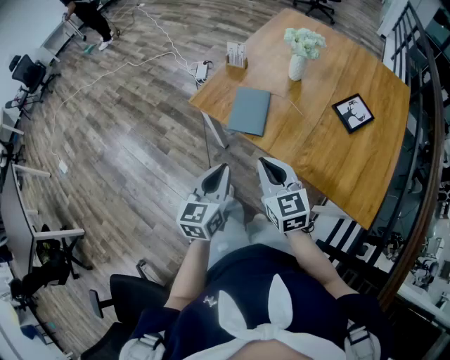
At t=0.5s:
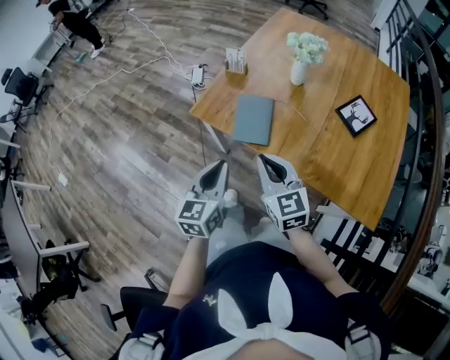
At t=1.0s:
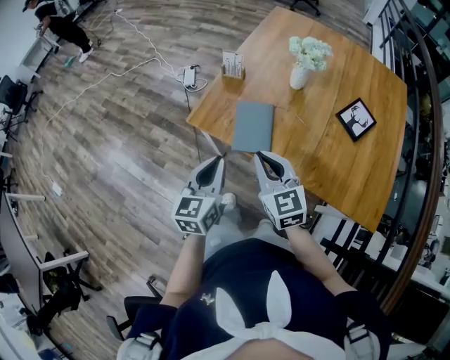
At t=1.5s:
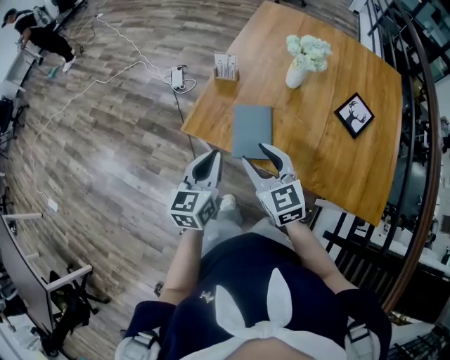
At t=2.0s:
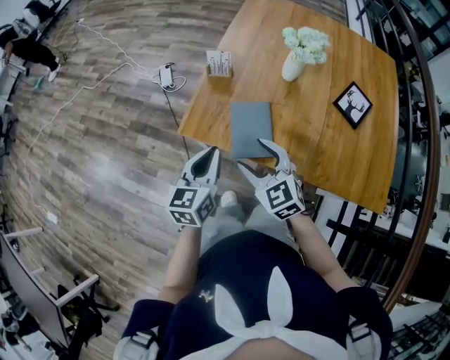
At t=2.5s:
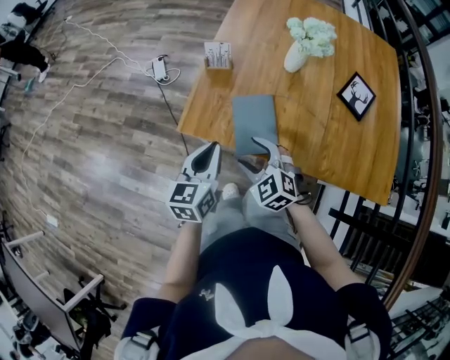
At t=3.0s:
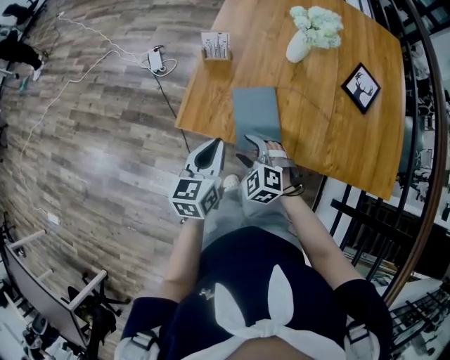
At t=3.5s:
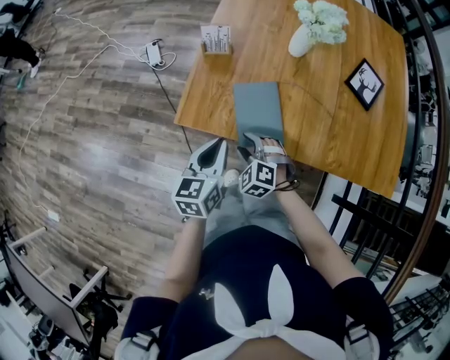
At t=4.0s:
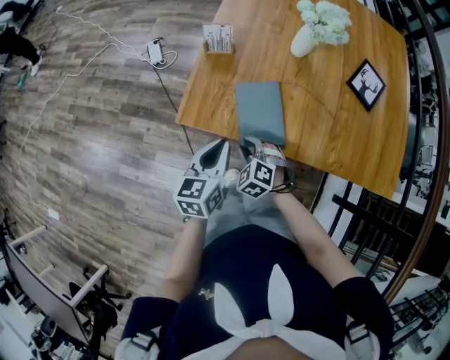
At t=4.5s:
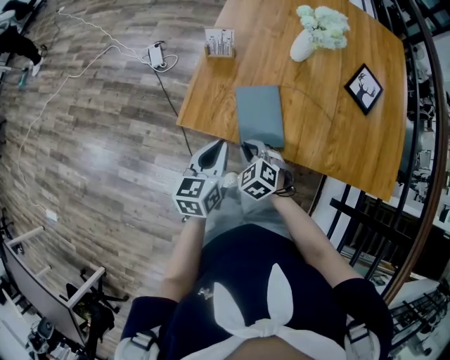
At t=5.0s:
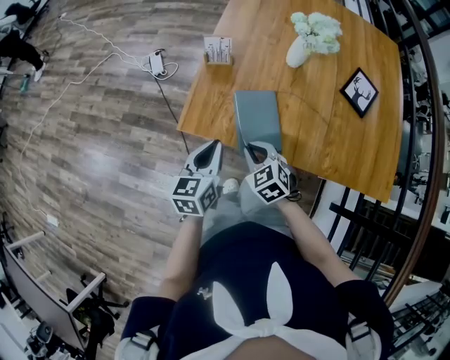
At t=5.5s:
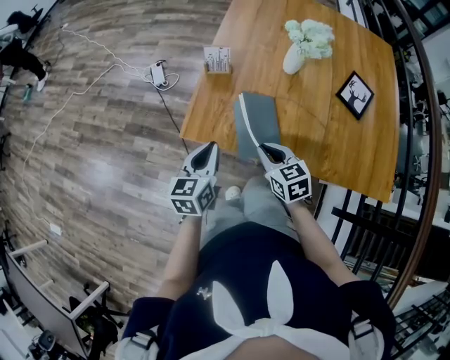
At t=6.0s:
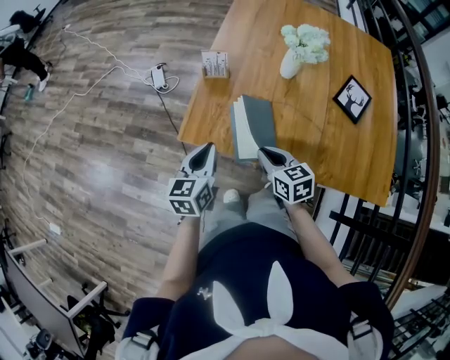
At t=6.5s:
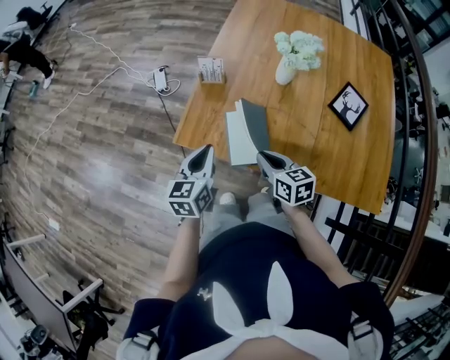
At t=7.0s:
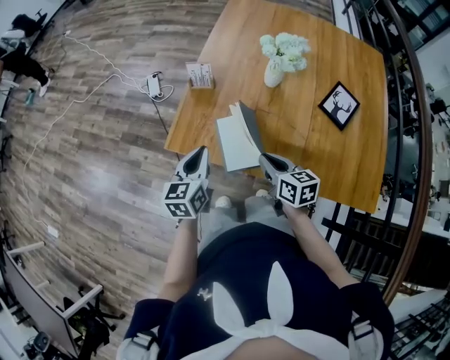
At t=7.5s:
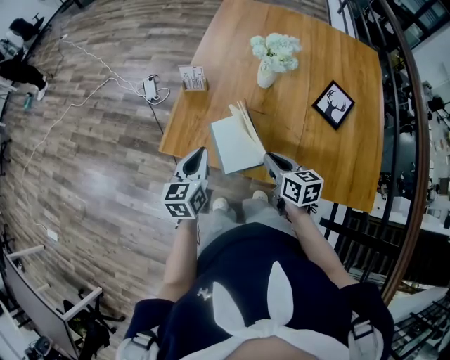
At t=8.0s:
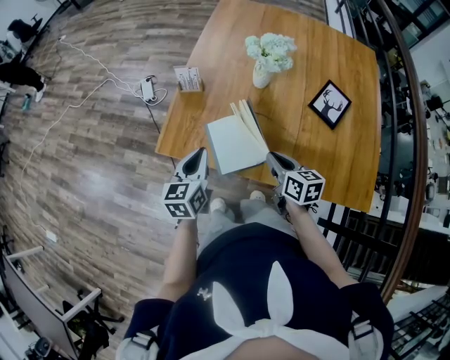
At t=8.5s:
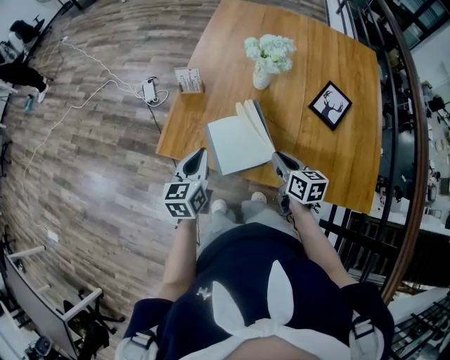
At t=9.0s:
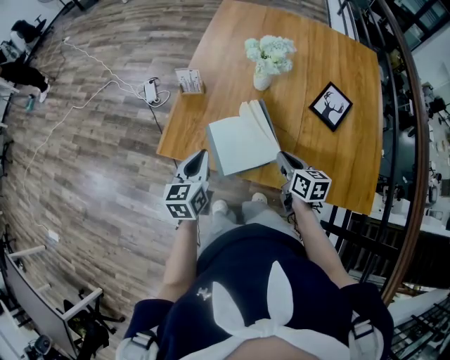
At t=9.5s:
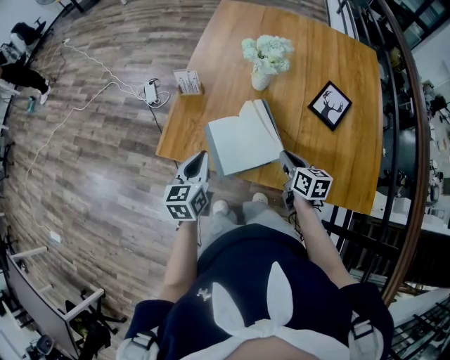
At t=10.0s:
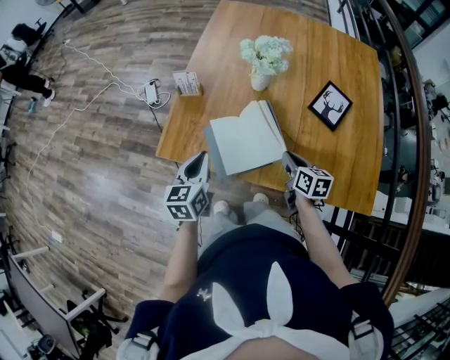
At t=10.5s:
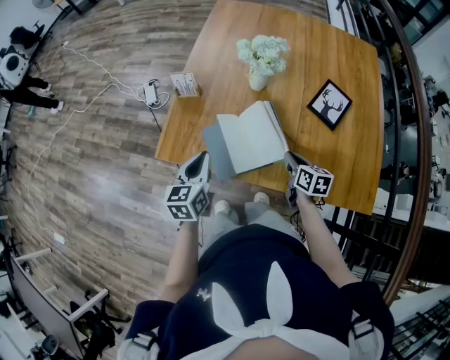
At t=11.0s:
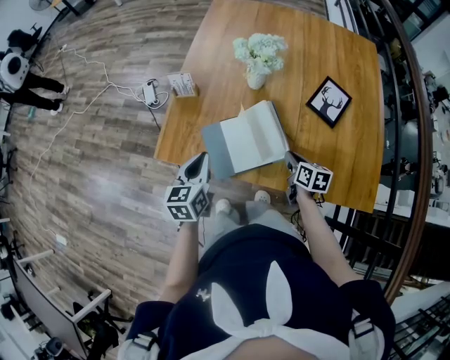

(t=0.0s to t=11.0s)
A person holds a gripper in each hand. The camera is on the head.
t=0.0s - t=2.0s: Both grippers move forward and to the left, some 25 cm. The right gripper opens up.
t=2.0s - t=3.5s: The left gripper travels downward by about 10 cm. Meanwhile the right gripper goes roughly 20 cm downward, and swivels roughly 30 degrees.
t=3.5s - t=5.5s: The right gripper travels upward and to the right by roughly 10 cm, rolls clockwise, seen from behind, by about 50 degrees, and closes.
t=5.5s - t=7.5s: The left gripper moves to the right, some 10 cm. The right gripper travels to the right by roughly 15 cm, and turns by roughly 20 degrees.
t=7.5s - t=9.0s: The right gripper is displaced to the right by approximately 5 cm.
t=9.0s - t=11.0s: The right gripper travels downward and to the right by approximately 10 cm.

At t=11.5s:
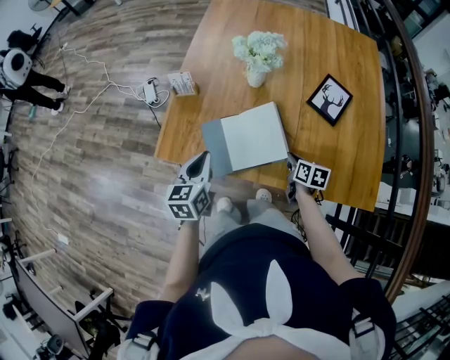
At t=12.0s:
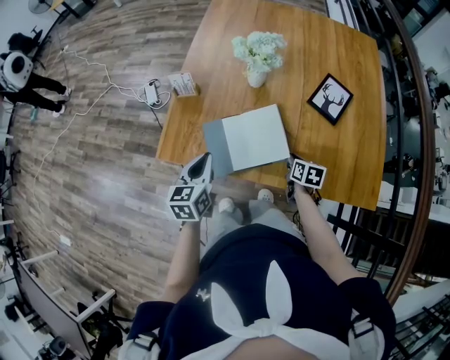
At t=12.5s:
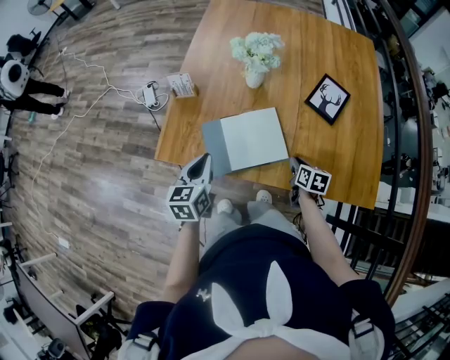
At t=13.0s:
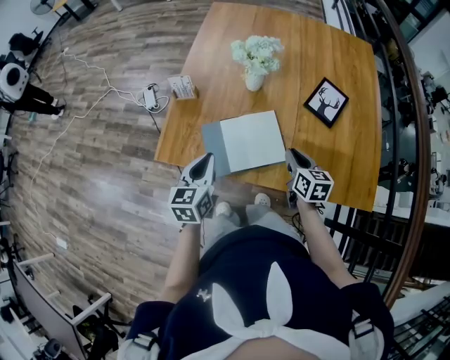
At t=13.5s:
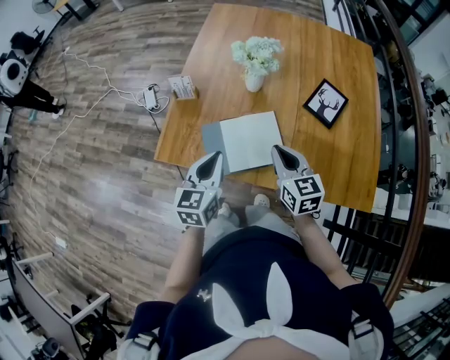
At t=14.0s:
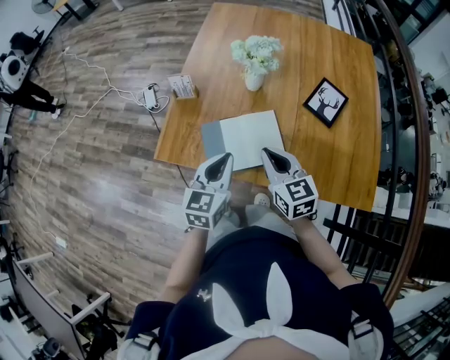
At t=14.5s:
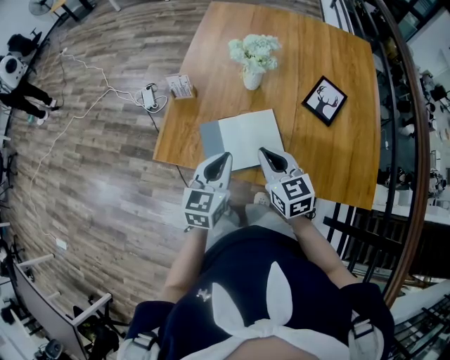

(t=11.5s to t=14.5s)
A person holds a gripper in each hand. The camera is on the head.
t=11.5s - t=13.0s: The right gripper goes approximately 10 cm upward.
t=13.0s - t=14.5s: The left gripper shifts roughly 5 cm to the right. The right gripper travels to the left and upward by about 15 cm, and swivels about 30 degrees.

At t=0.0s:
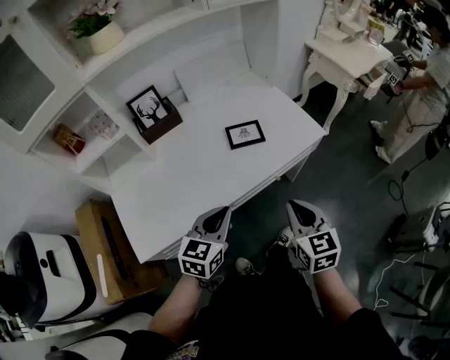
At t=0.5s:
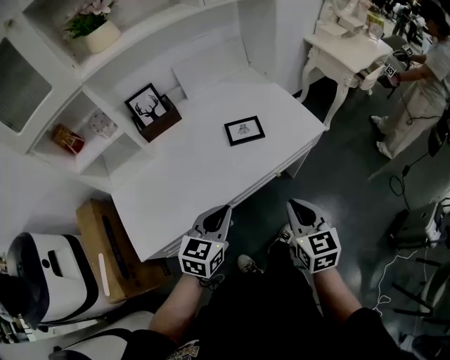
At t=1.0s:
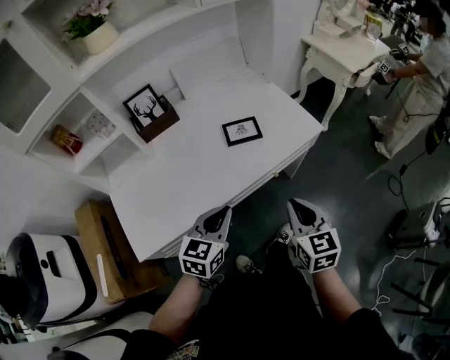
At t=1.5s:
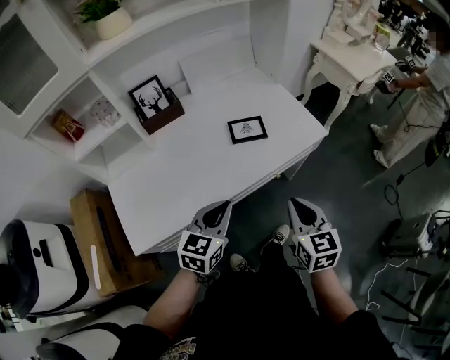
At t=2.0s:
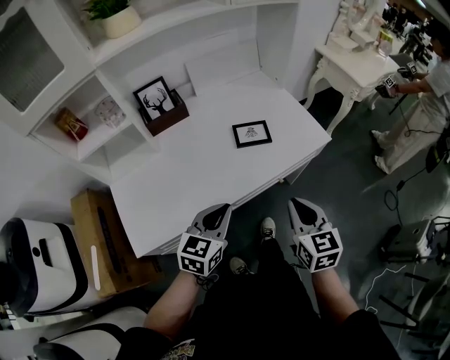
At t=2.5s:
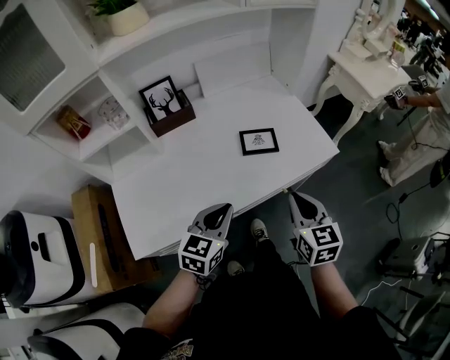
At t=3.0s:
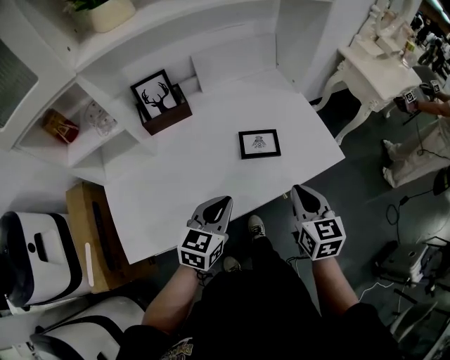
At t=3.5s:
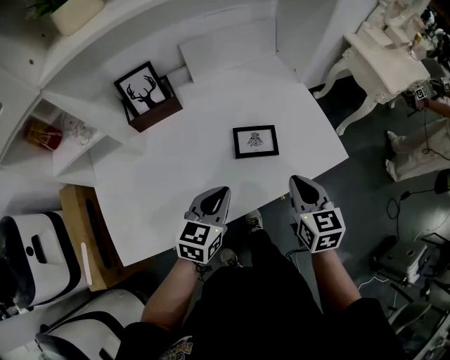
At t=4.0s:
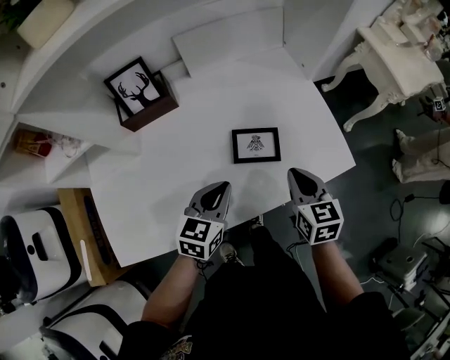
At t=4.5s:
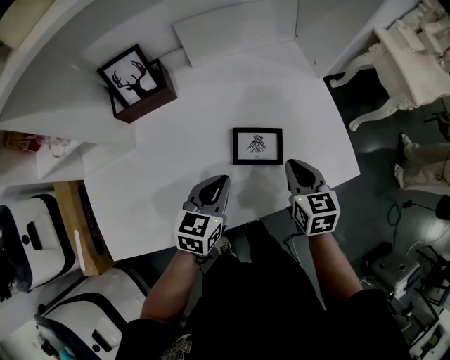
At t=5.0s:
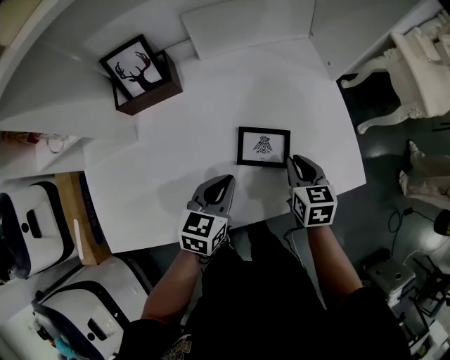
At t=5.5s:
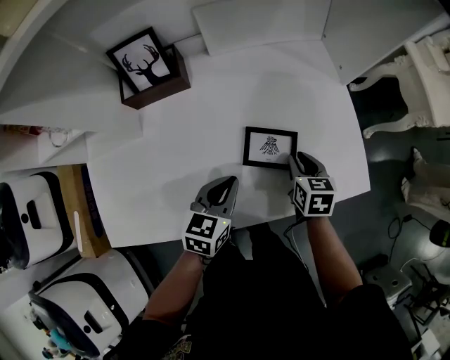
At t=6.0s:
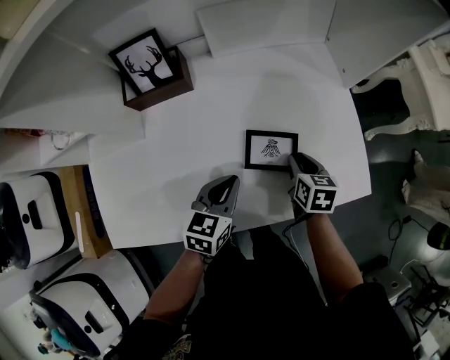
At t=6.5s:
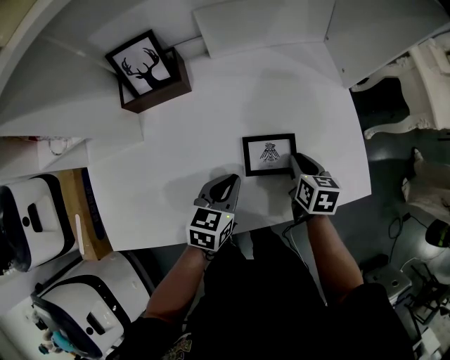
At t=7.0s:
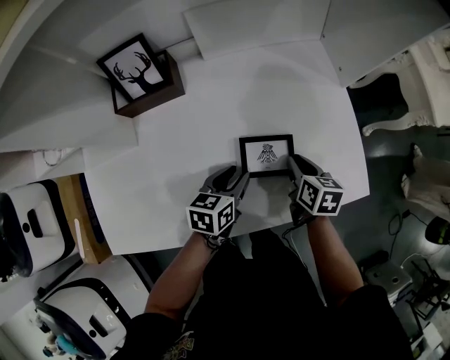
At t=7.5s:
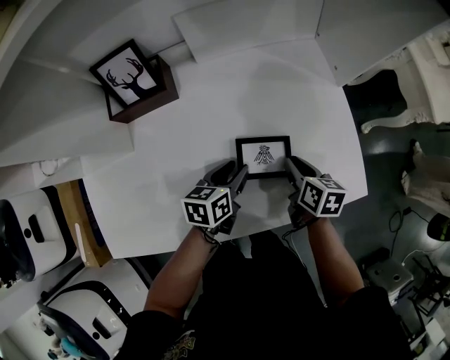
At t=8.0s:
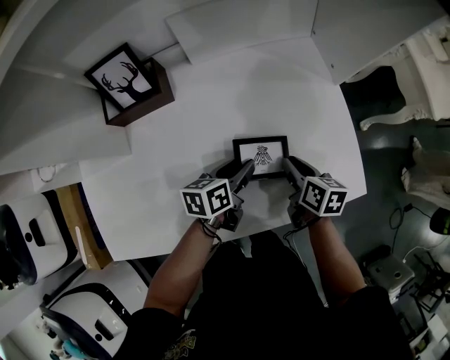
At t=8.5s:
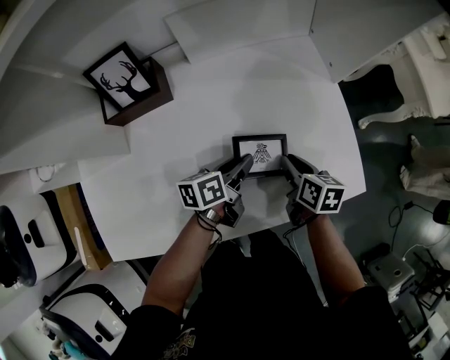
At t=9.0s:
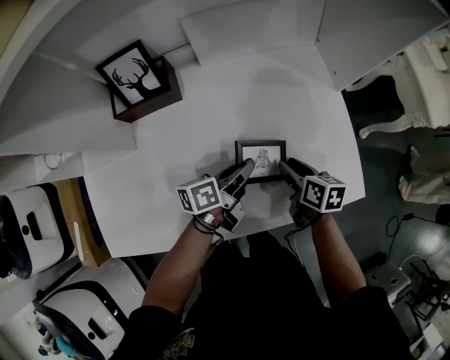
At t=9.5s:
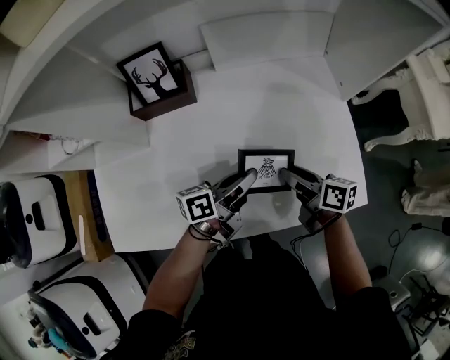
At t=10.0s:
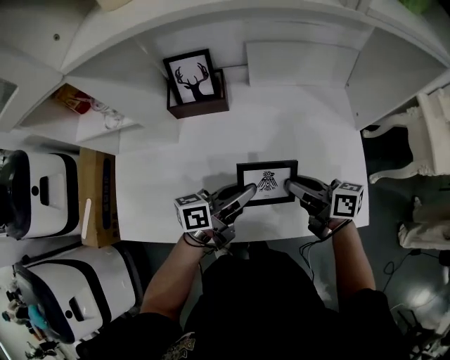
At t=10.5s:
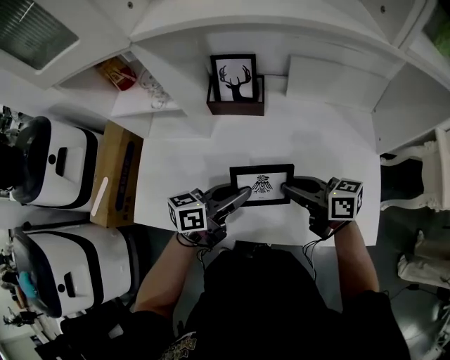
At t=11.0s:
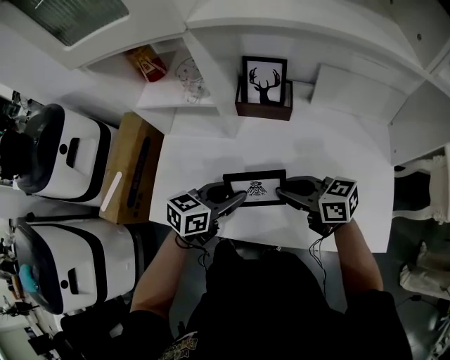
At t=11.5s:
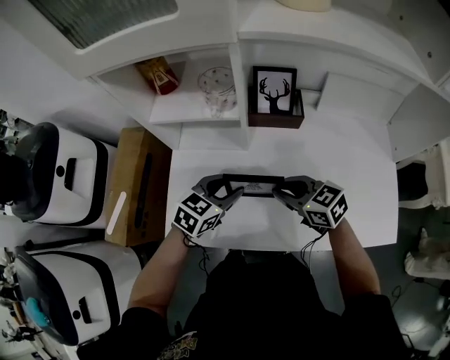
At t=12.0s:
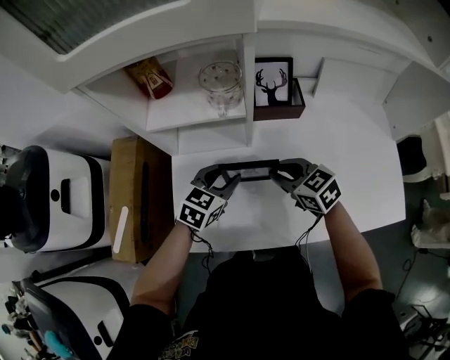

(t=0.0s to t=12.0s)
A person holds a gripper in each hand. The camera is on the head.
t=0.0s - t=2.0s: The grippers stay close to where they were, moving slightly.
t=2.0s - t=4.0s: The grippers both shift forward by roughly 25 cm.
t=4.0s - t=6.0s: The right gripper heads downward and forward, covering roughly 15 cm; the left gripper shifts by approximately 5 cm.
t=6.0s - t=8.0s: The left gripper goes about 10 cm forward, downward and to the right, turns by about 30 degrees, and opens.
t=8.0s - t=10.0s: The left gripper shifts about 15 cm upward, to the left and backward, tips its fingers upward by roughly 30 degrees, and closes up. Meanwhile the right gripper shifts some 15 cm upward and to the left, and rotates some 40 degrees.
t=10.0s - t=12.0s: The right gripper moves about 30 cm, and rotates around the line of its fingers by about 40 degrees, counterclockwise from behind, while the left gripper shifts by roughly 30 cm, points its fingers some 30 degrees further downward, and opens its fingers.
